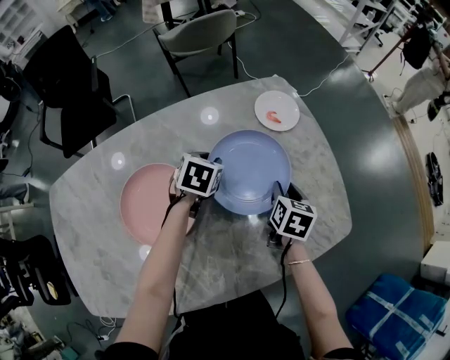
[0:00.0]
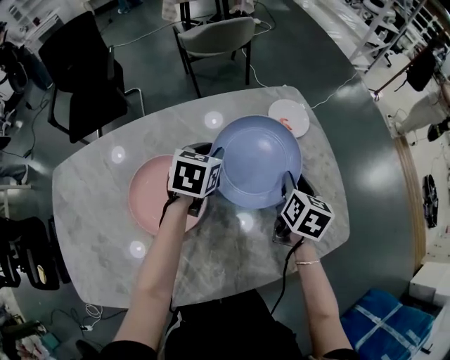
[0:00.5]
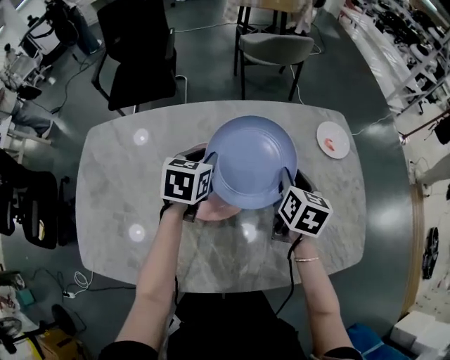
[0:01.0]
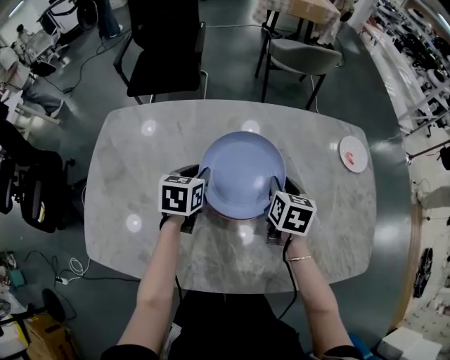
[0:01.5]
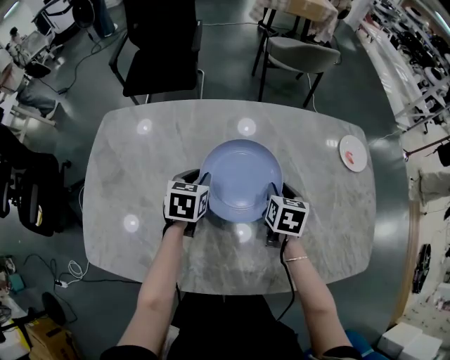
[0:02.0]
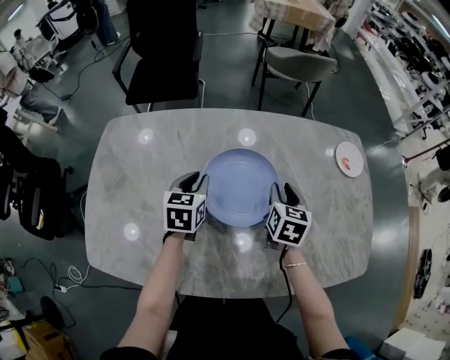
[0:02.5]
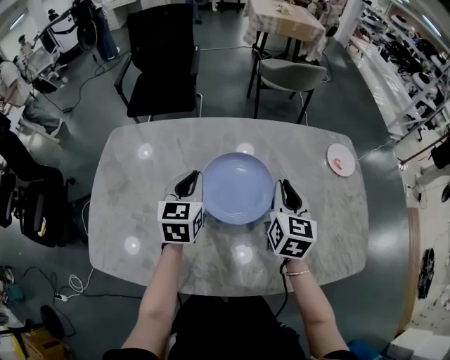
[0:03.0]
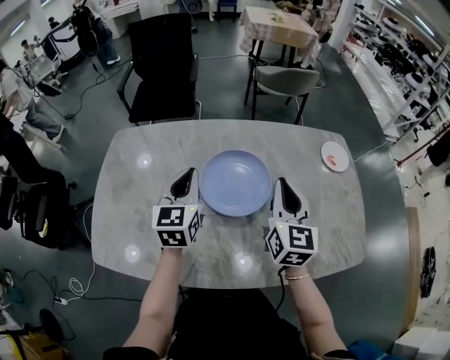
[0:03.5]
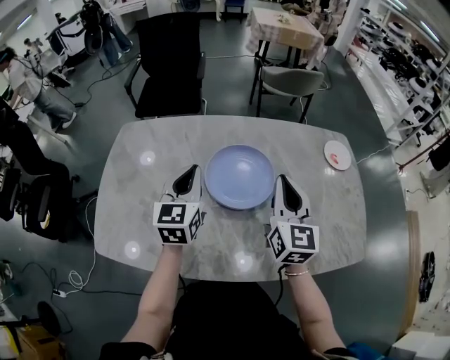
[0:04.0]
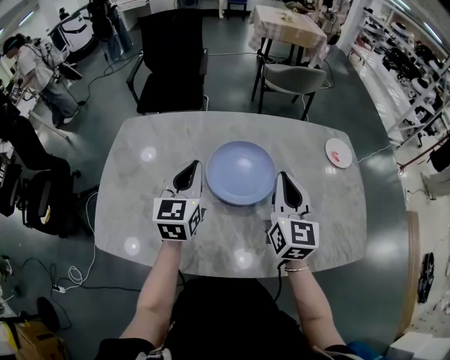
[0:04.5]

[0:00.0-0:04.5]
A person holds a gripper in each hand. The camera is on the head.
0:00.0 to 0:02.0: The left gripper travels upward and back again, roughly 10 cm each way, and swivels about 30 degrees, while the right gripper reaches about 10 cm upward, then returns, and turns by about 30 degrees.
0:02.0 to 0:04.5: Both grippers travel together upward and backward, approximately 20 cm. The left gripper tips its fingers upward by about 30 degrees, and closes its fingers; the right gripper tilts its fingers some 40 degrees upward, and closes its fingers.

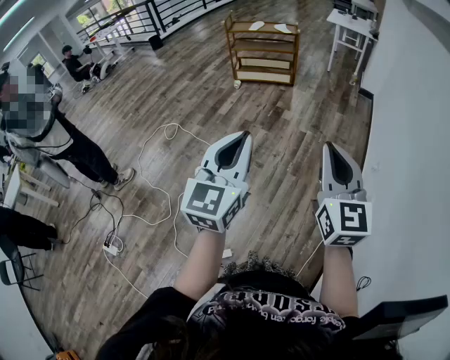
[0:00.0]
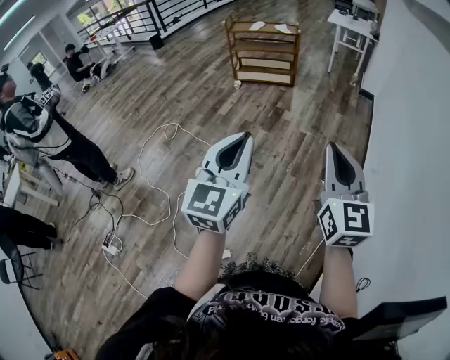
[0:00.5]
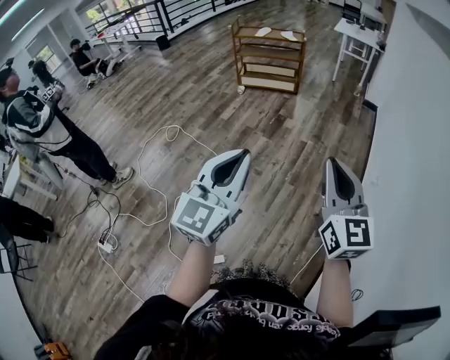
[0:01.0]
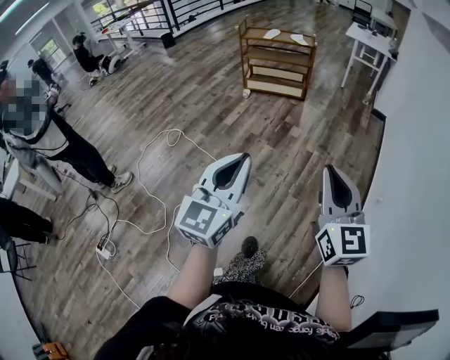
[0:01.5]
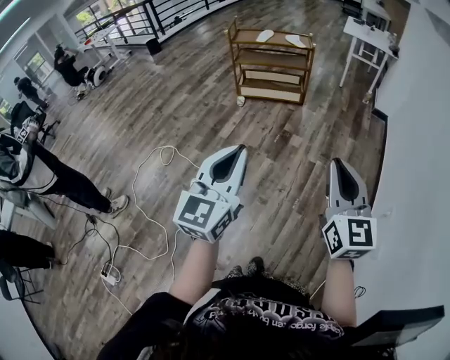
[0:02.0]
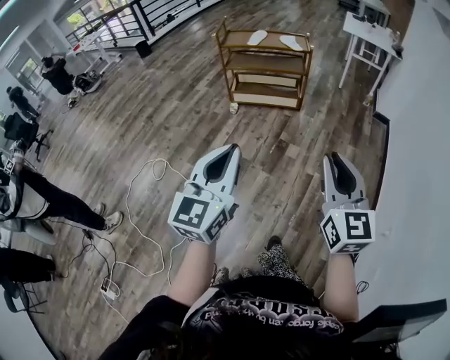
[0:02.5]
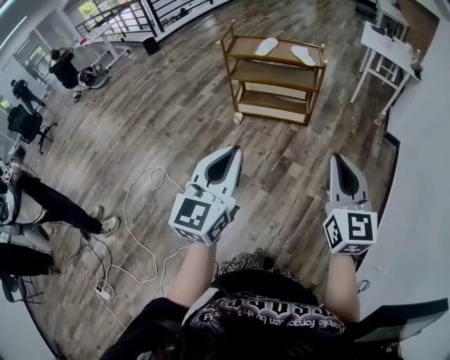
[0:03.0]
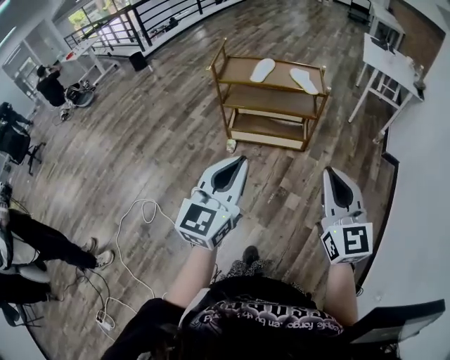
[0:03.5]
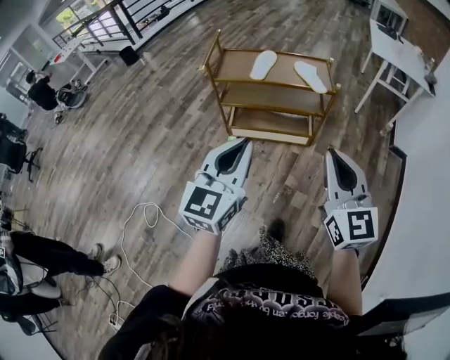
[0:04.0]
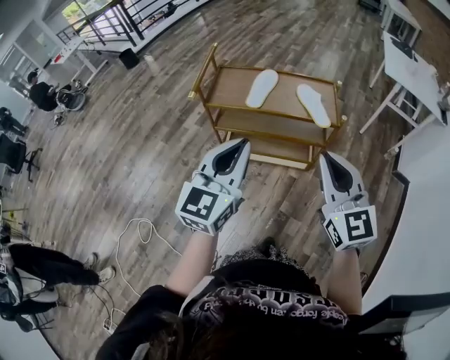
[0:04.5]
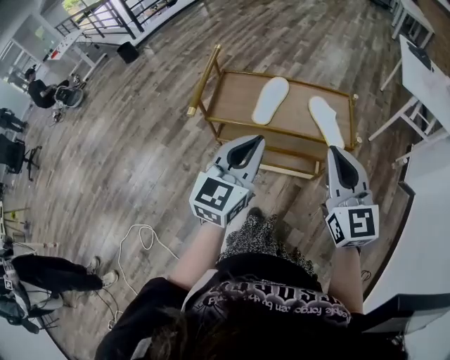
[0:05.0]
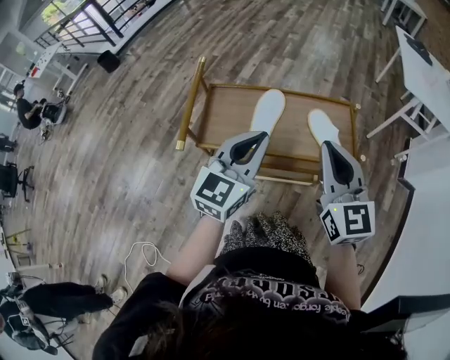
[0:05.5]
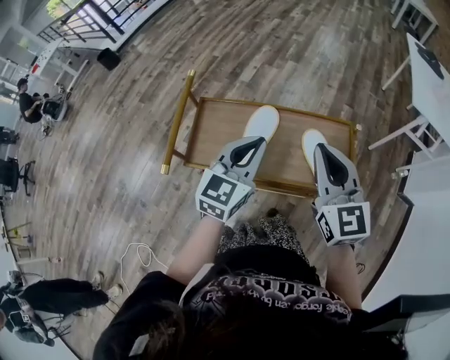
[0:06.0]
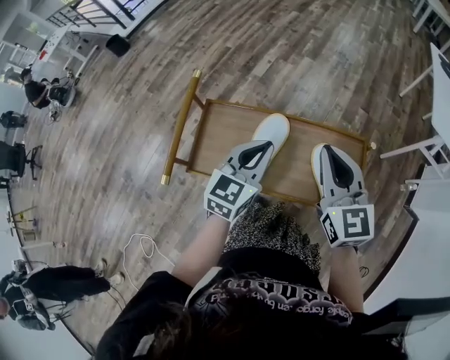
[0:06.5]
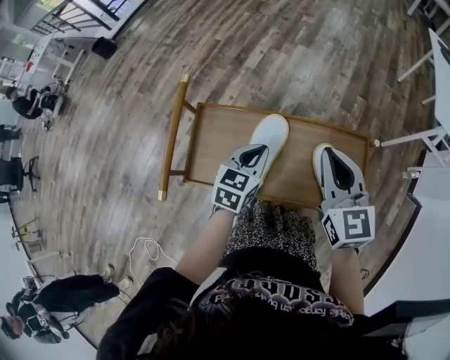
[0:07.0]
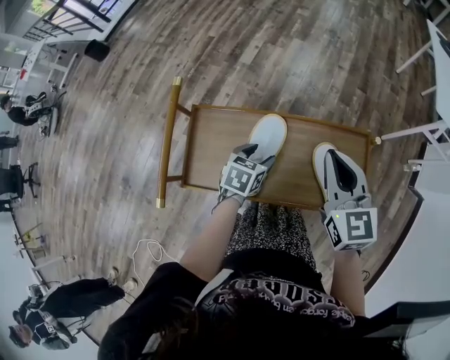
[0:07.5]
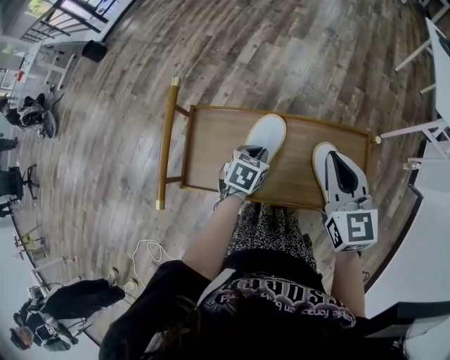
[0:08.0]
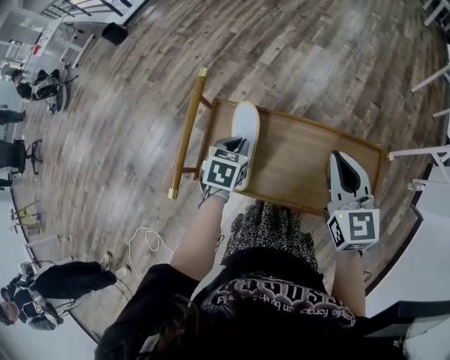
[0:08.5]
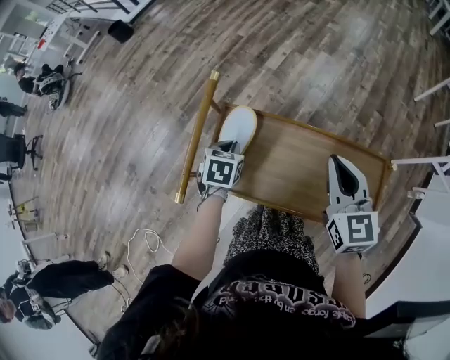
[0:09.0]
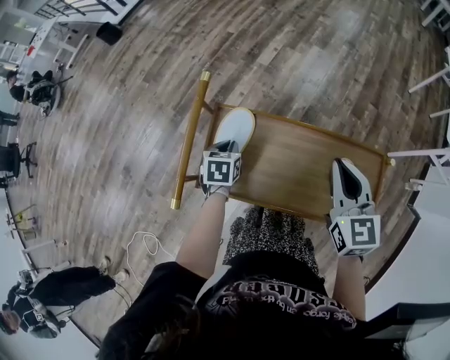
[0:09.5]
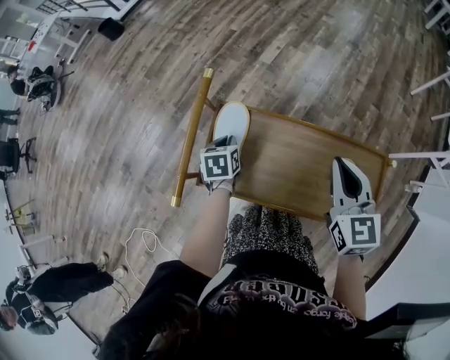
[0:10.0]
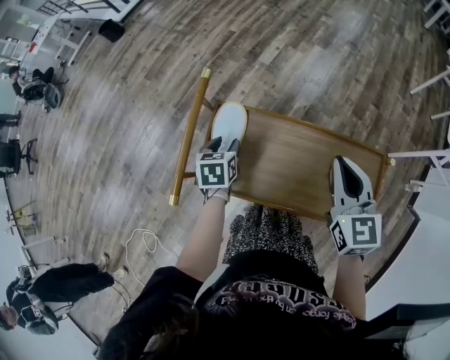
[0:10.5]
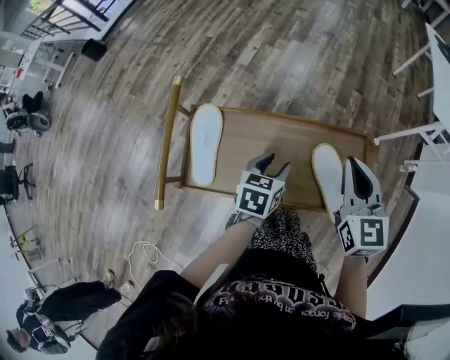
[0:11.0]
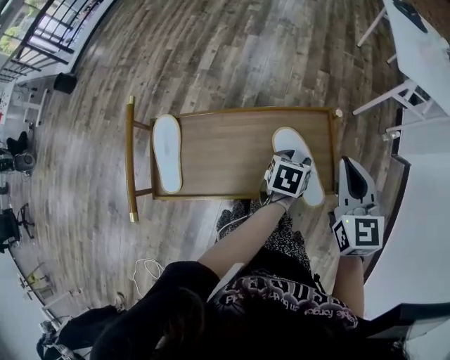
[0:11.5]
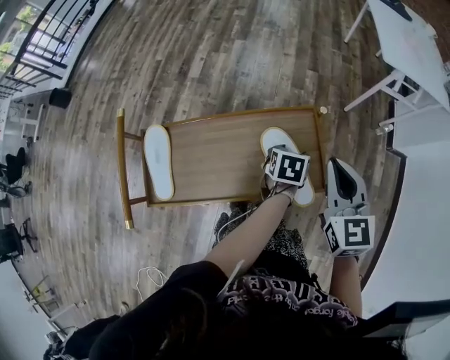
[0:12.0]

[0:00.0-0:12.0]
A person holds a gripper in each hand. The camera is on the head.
0:00.0 to 0:02.0: The two grippers go about 30 cm forward.
0:02.0 to 0:04.0: Both grippers are carried forward, about 70 cm.
0:04.0 to 0:06.0: The two grippers travel together, forward, roughly 60 cm.
0:06.0 to 0:08.0: The right gripper goes about 15 cm forward and downward. The left gripper moves downward, about 25 cm, angles its fingers downward, by about 40 degrees, and opens, then closes once more.
0:08.0 to 0:10.0: The left gripper is displaced to the left by roughly 20 cm, and rotates roughly 40 degrees; the right gripper goes about 5 cm to the left.
0:10.0 to 0:12.0: The right gripper ends up approximately 25 cm from where it was, and rotates some 20 degrees. Meanwhile the left gripper moves roughly 50 cm, rotates some 40 degrees, and opens.

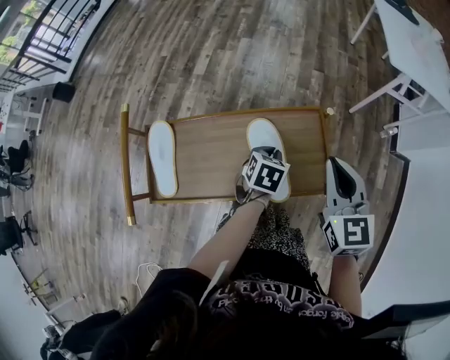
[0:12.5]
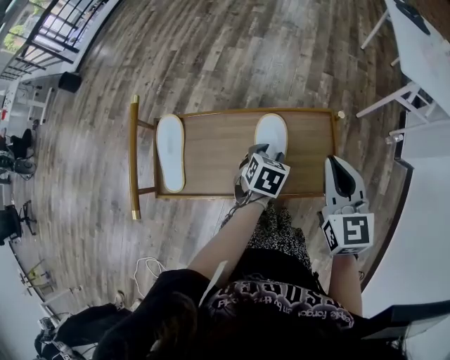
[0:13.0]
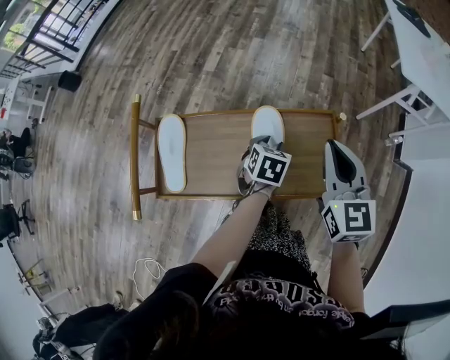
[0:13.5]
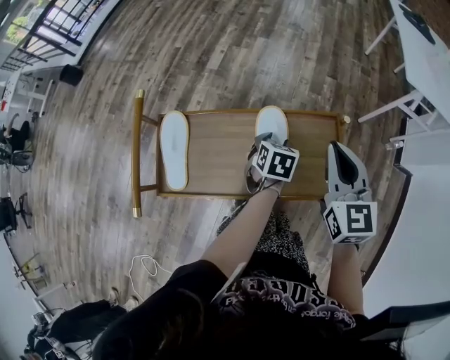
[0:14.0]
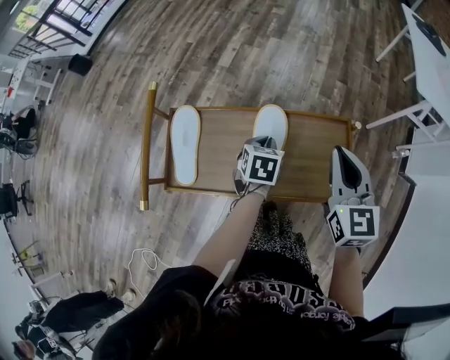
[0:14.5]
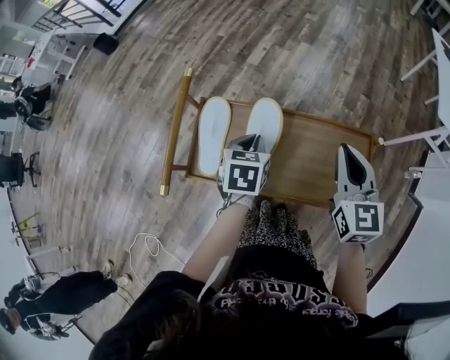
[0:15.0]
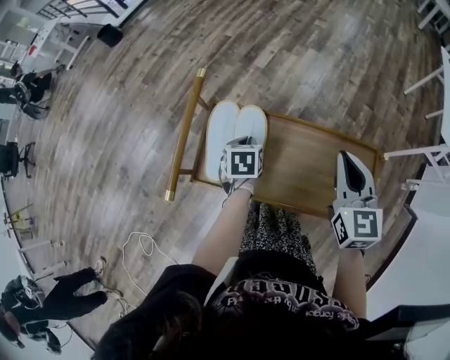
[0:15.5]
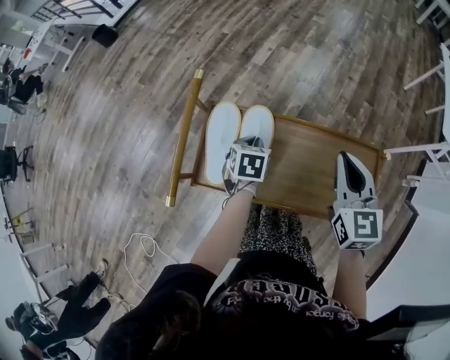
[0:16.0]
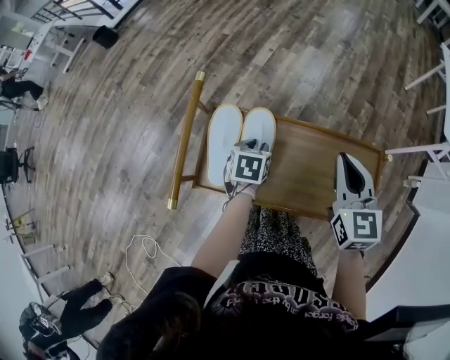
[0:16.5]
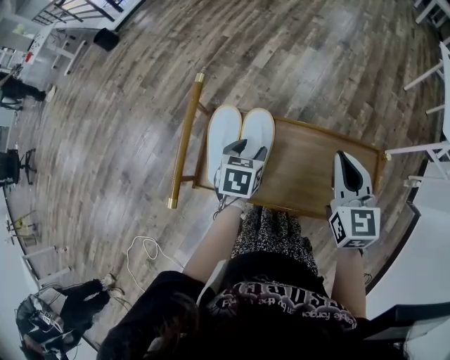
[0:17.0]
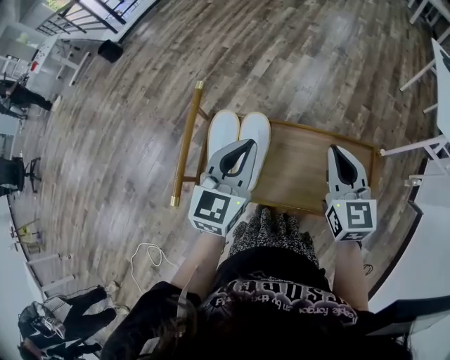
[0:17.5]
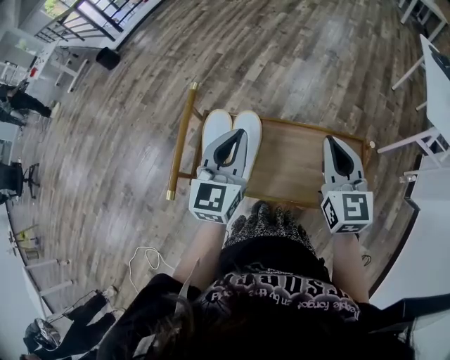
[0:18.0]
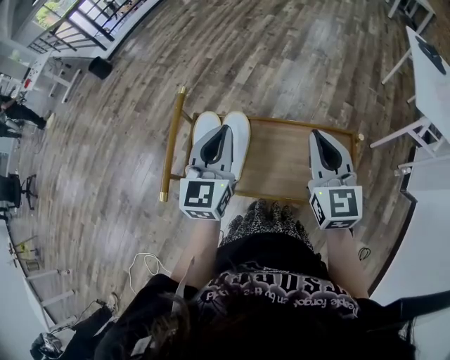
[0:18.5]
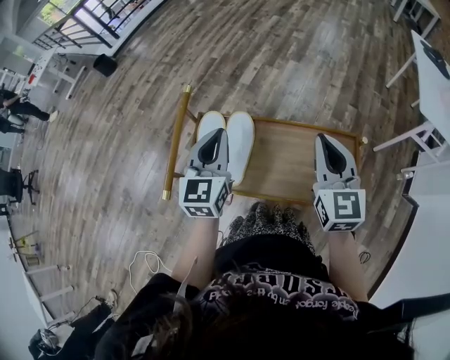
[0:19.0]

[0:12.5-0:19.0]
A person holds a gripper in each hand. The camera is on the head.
0:12.5 to 0:14.5: The grippers both shift to the left by about 10 cm. The left gripper opens and closes again.
0:14.5 to 0:17.0: The left gripper travels to the left by about 15 cm, and opens up. The right gripper shifts some 10 cm to the left.
0:17.0 to 0:19.0: The left gripper goes some 20 cm upward, angles its fingers upward, by approximately 40 degrees, and closes up. Meanwhile the right gripper is displaced upward by approximately 5 cm.

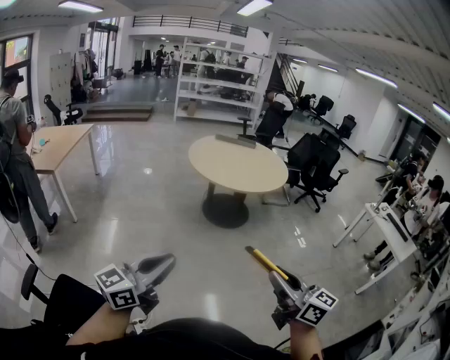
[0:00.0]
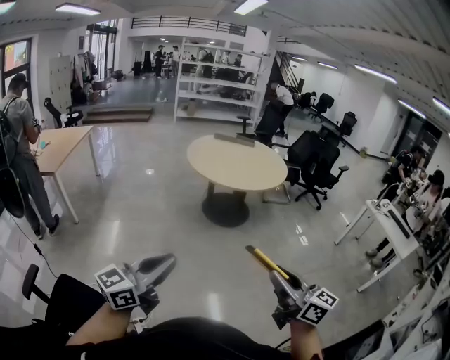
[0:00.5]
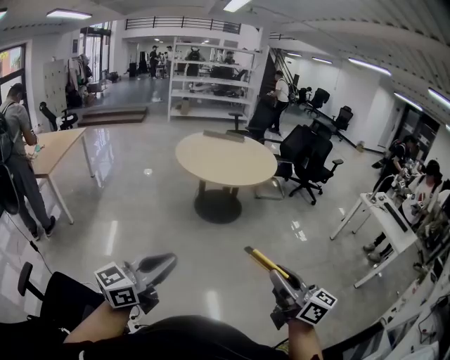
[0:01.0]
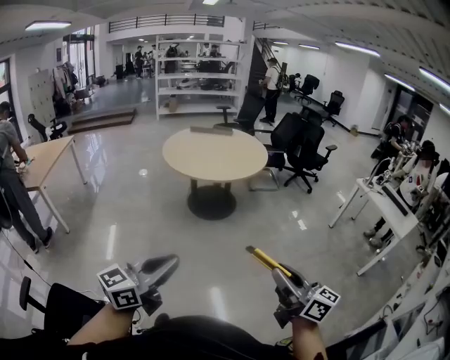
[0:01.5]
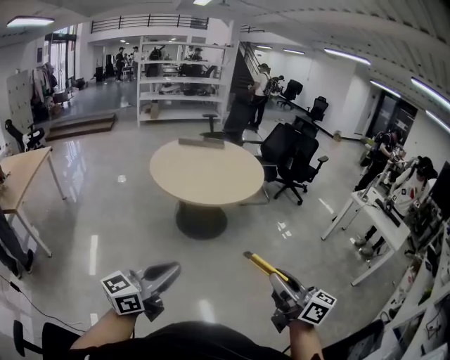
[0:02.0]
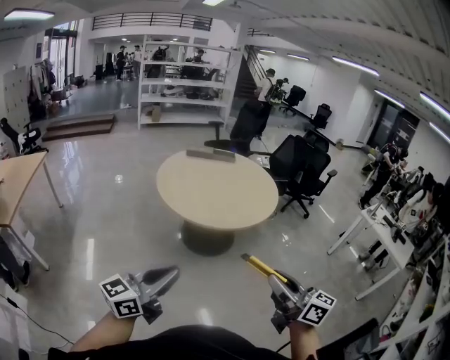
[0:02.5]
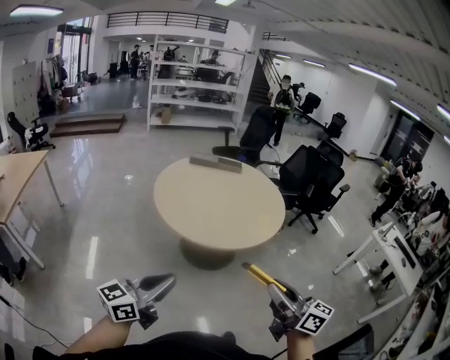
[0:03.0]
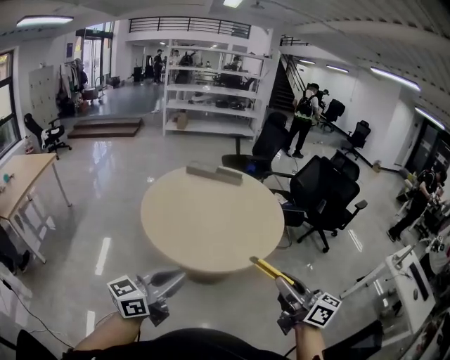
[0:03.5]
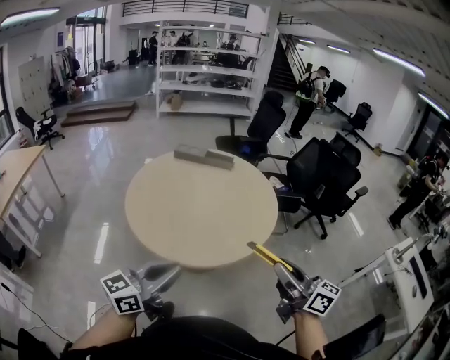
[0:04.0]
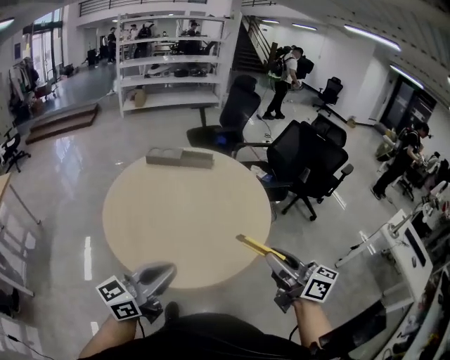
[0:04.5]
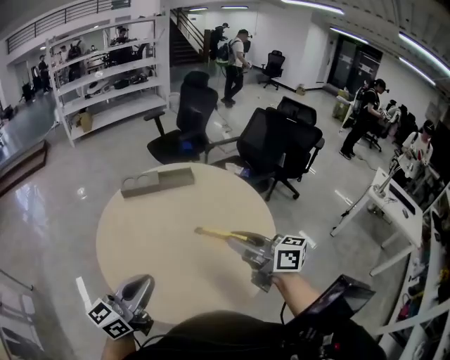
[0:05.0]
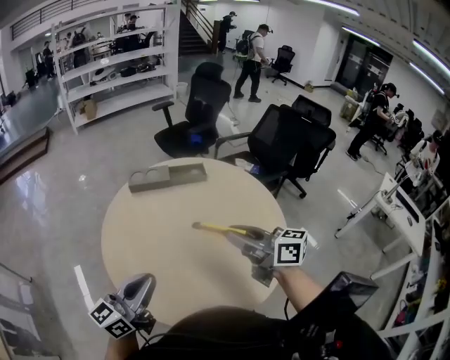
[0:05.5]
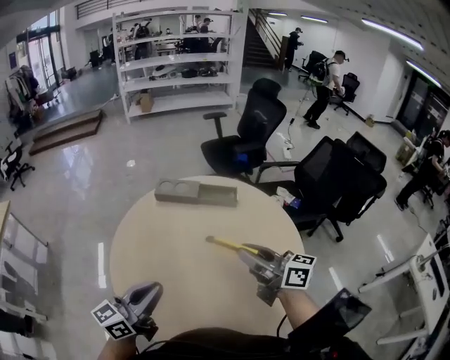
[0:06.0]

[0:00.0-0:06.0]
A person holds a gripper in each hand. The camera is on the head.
0:00.0 to 0:02.0: Both grippers move forward, approximately 20 cm.
0:02.0 to 0:04.0: Both grippers are carried forward, about 60 cm.
0:04.0 to 0:06.0: The two grippers travel together, forward and to the left, approximately 50 cm.
